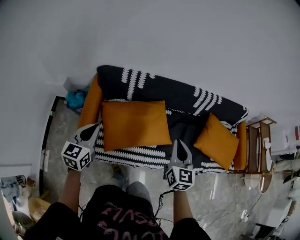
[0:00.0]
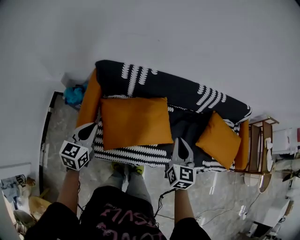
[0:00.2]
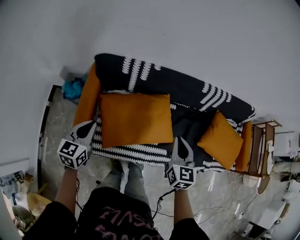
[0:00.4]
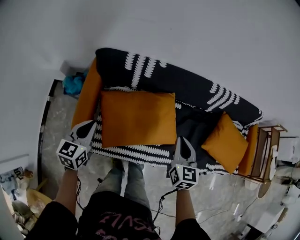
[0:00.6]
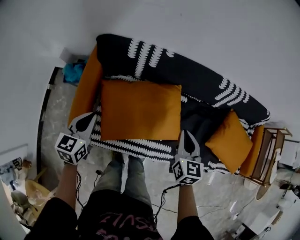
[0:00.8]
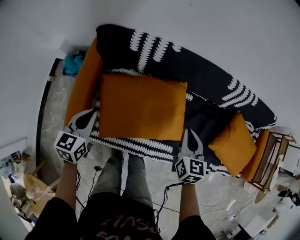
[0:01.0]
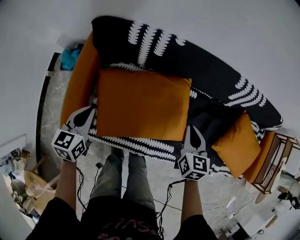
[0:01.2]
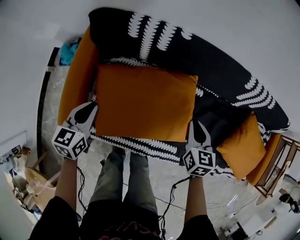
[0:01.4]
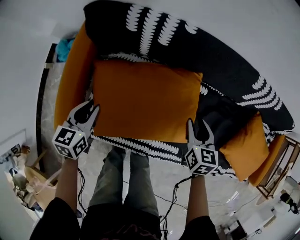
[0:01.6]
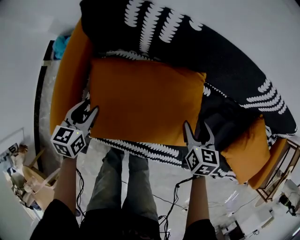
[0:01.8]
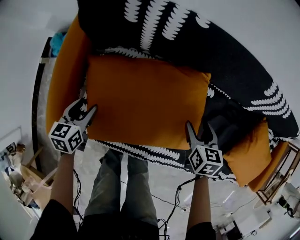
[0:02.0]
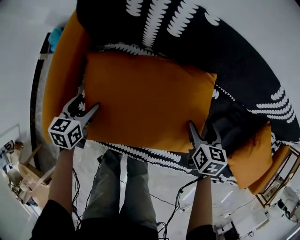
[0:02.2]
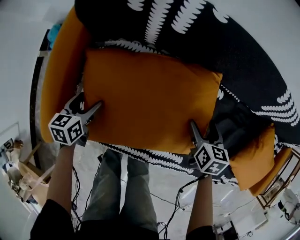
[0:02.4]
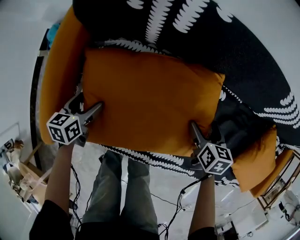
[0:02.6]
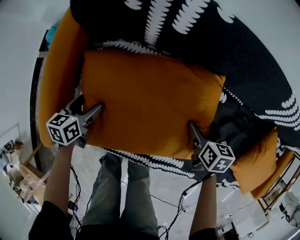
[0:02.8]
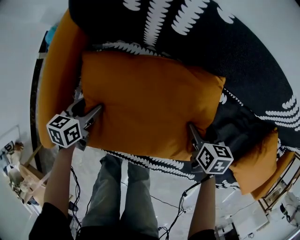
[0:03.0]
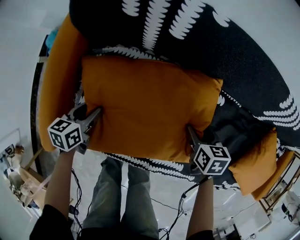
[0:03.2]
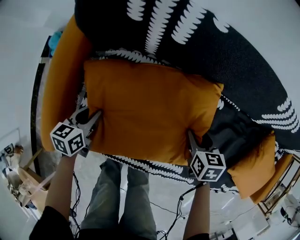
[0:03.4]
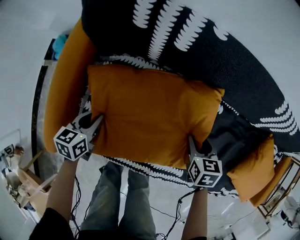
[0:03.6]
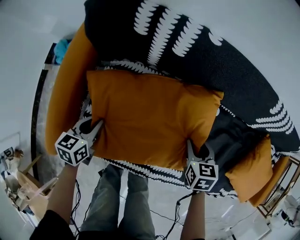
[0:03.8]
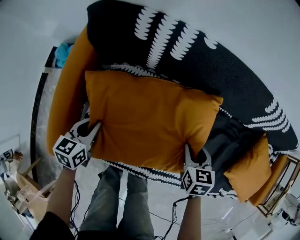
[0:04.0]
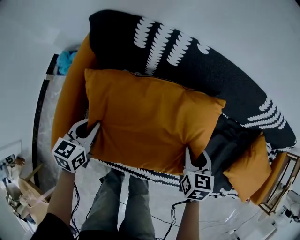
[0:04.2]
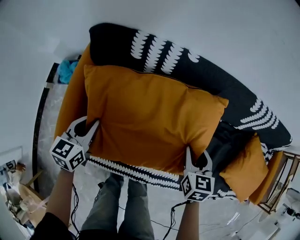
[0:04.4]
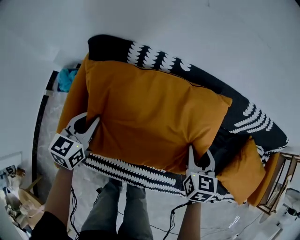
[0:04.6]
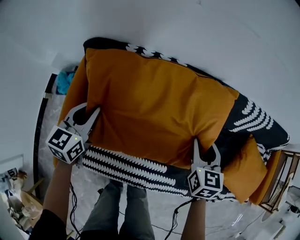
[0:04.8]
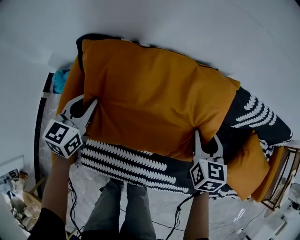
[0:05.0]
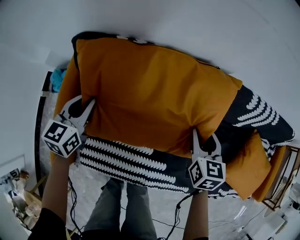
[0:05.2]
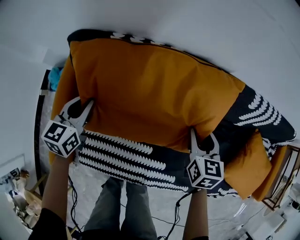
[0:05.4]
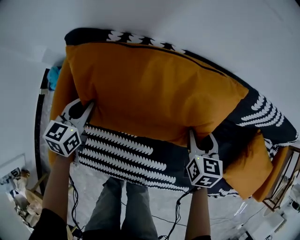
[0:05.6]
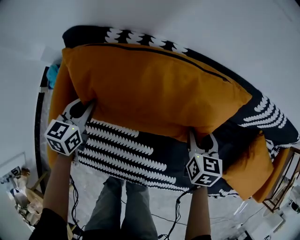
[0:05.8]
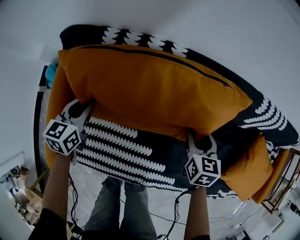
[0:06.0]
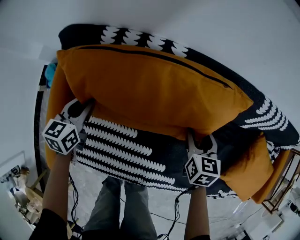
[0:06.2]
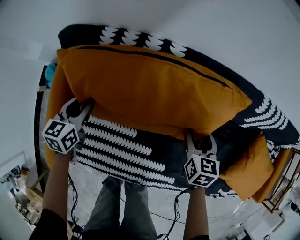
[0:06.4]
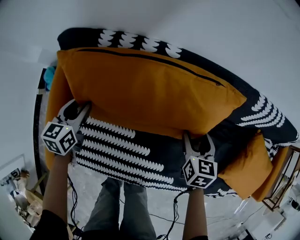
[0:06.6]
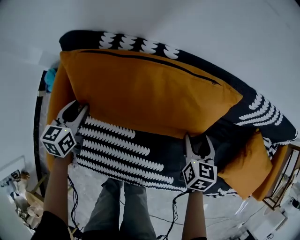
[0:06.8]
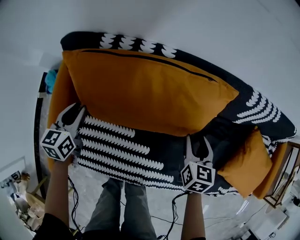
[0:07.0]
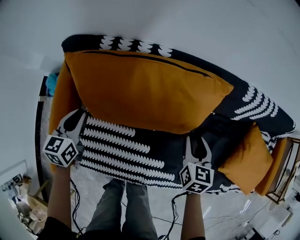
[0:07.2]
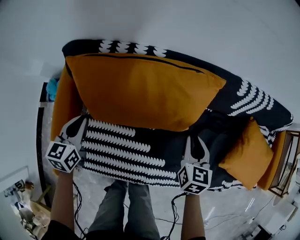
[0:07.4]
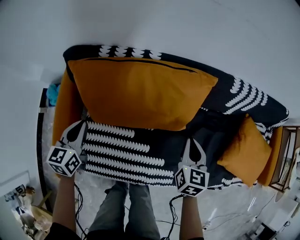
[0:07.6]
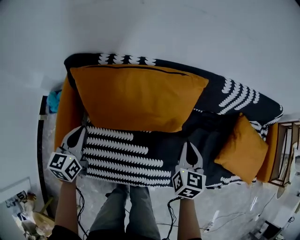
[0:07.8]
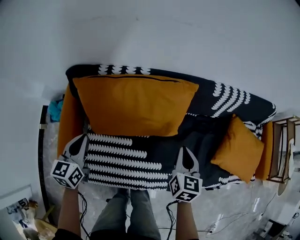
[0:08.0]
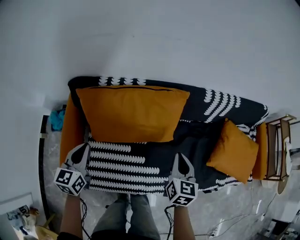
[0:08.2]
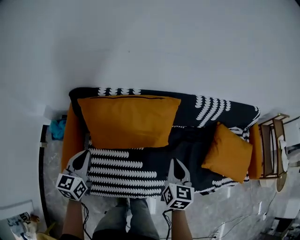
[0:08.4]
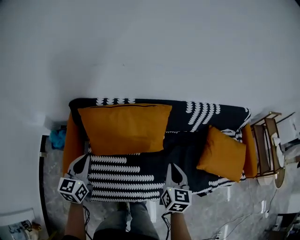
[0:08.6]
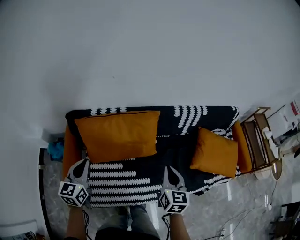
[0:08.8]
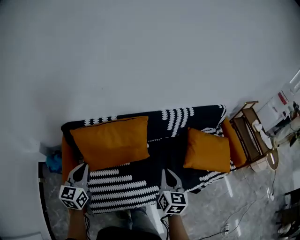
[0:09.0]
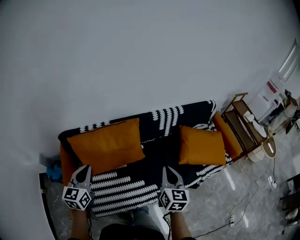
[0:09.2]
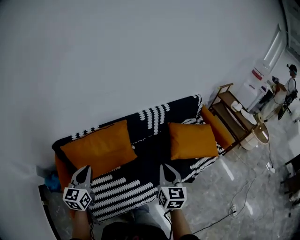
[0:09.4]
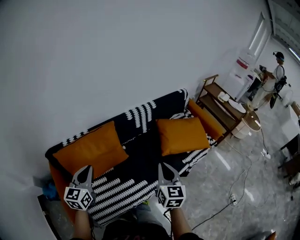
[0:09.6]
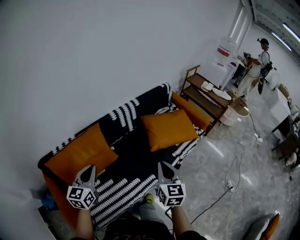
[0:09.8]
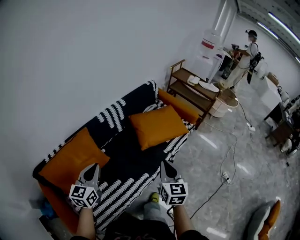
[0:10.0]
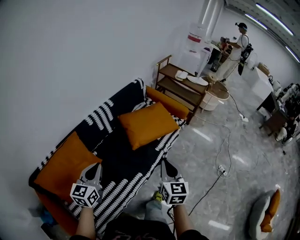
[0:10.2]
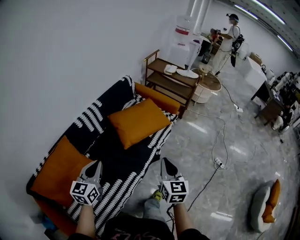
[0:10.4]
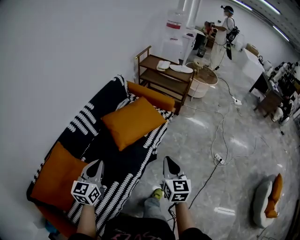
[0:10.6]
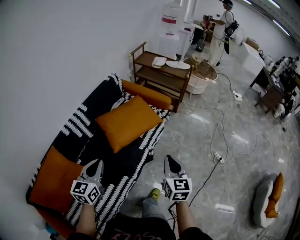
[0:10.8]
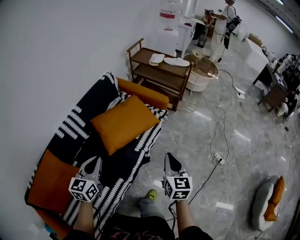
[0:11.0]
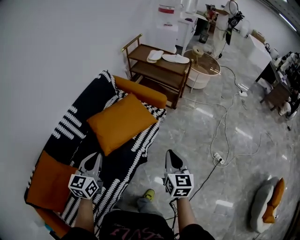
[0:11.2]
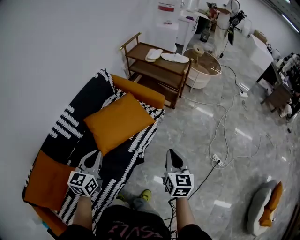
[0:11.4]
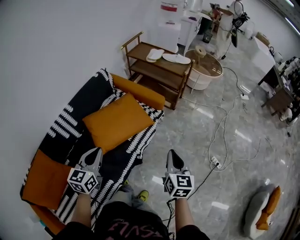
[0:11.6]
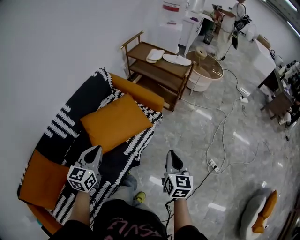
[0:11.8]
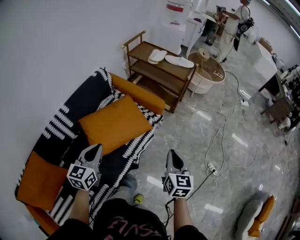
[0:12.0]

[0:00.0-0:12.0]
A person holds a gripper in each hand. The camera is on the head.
0:00.0 to 0:01.6: Both grippers move downward and forward, roughly 35 cm. The right gripper changes its angle by about 30 degrees; the left gripper rotates approximately 20 degrees.
0:01.6 to 0:03.0: The two grippers go approximately 20 cm downward. The right gripper swivels approximately 20 degrees, and opens; the left gripper opens.
0:03.0 to 0:04.4: The two grippers go about 20 cm upward. The right gripper changes its angle by some 30 degrees. The left gripper rotates some 20 degrees, and closes up.
0:04.4 to 0:06.0: Both grippers move forward and downward, about 15 cm.
0:06.0 to 0:07.6: The two grippers go approximately 10 cm upward and backward. The right gripper closes.
0:07.6 to 0:09.0: The left gripper heads upward, covering approximately 25 cm, and swivels approximately 20 degrees. The right gripper heads upward and backward, covering approximately 30 cm, and turns by about 20 degrees.
0:09.0 to 0:10.4: The left gripper moves approximately 40 cm, and rotates roughly 50 degrees; the right gripper ends up roughly 35 cm from where it was, and rotates roughly 40 degrees.
0:10.4 to 0:12.0: Both grippers travel together forward and to the right, roughly 40 cm.

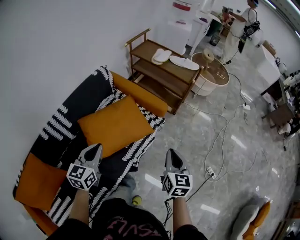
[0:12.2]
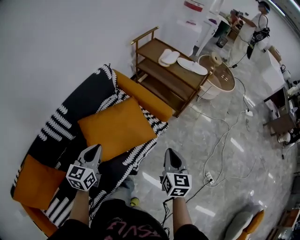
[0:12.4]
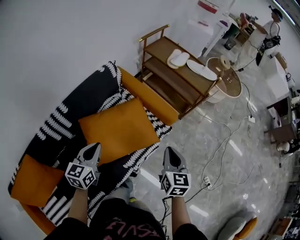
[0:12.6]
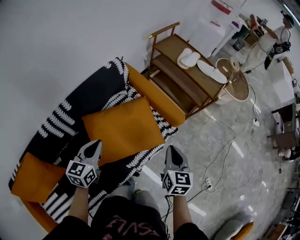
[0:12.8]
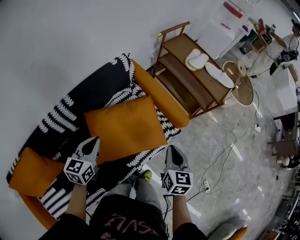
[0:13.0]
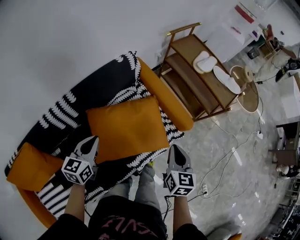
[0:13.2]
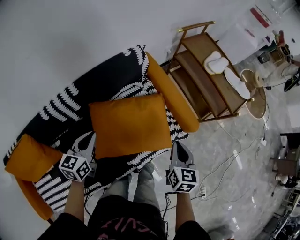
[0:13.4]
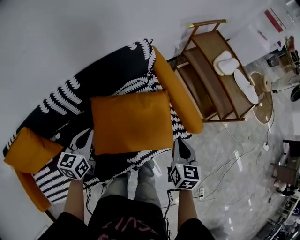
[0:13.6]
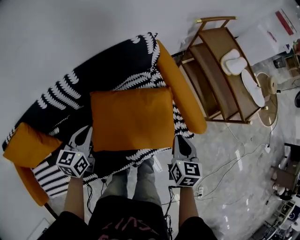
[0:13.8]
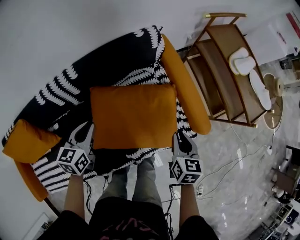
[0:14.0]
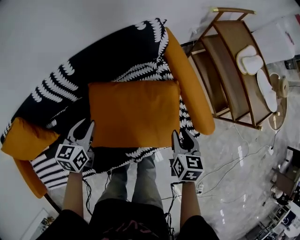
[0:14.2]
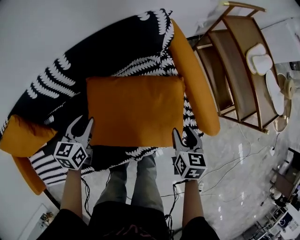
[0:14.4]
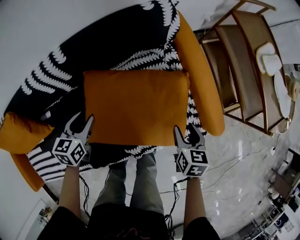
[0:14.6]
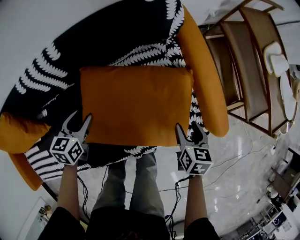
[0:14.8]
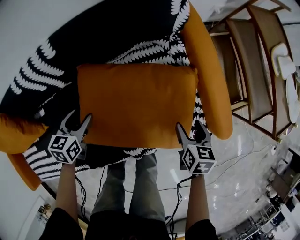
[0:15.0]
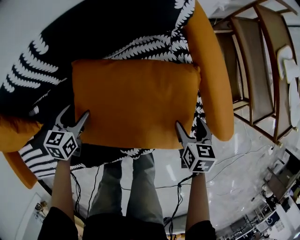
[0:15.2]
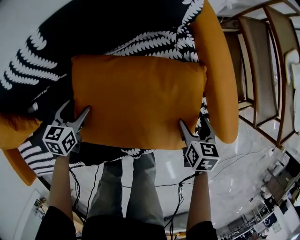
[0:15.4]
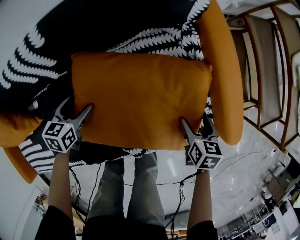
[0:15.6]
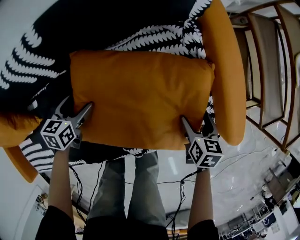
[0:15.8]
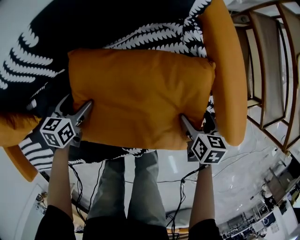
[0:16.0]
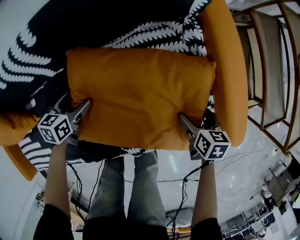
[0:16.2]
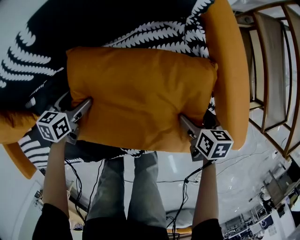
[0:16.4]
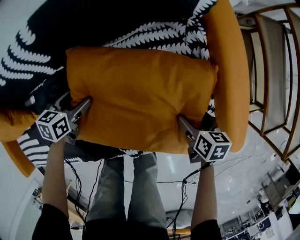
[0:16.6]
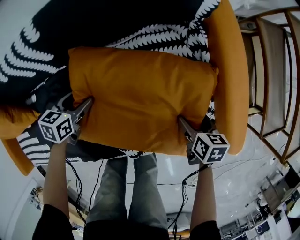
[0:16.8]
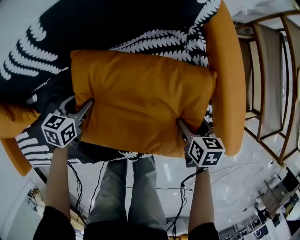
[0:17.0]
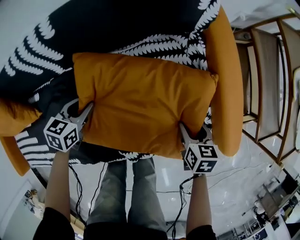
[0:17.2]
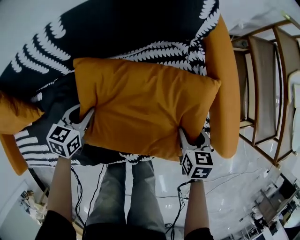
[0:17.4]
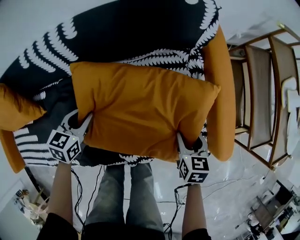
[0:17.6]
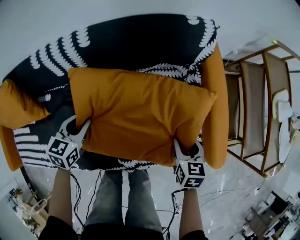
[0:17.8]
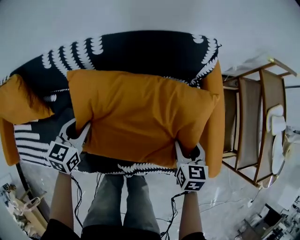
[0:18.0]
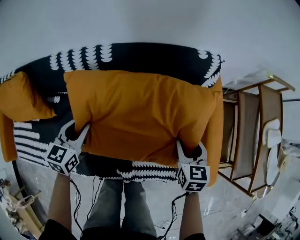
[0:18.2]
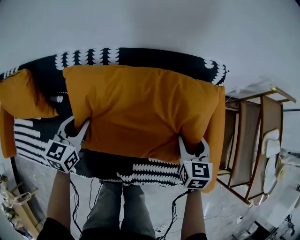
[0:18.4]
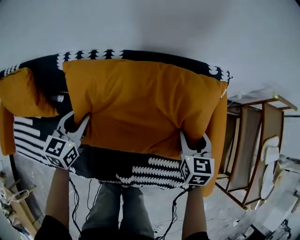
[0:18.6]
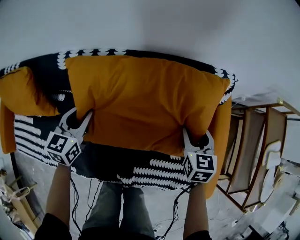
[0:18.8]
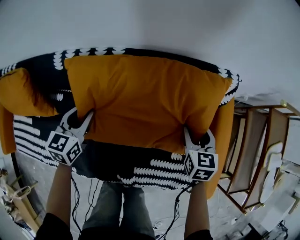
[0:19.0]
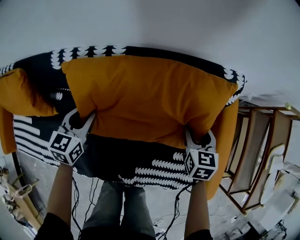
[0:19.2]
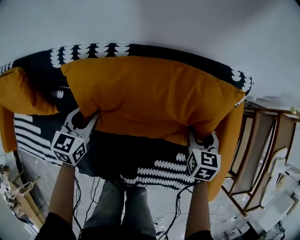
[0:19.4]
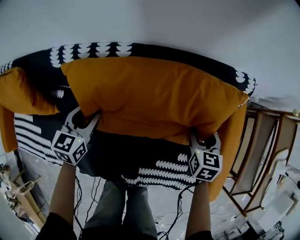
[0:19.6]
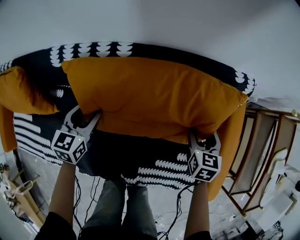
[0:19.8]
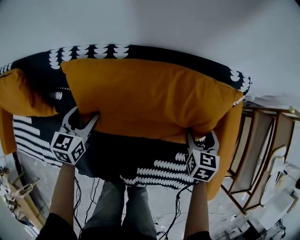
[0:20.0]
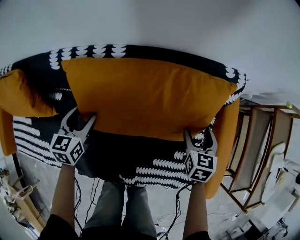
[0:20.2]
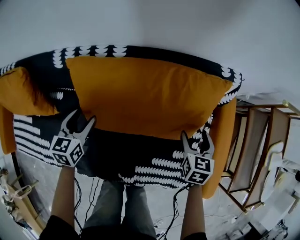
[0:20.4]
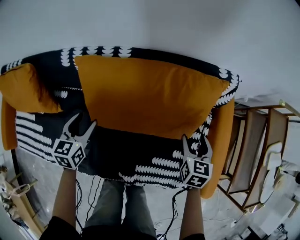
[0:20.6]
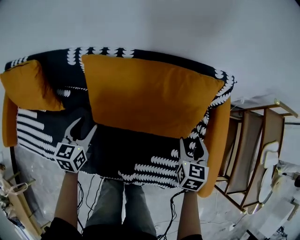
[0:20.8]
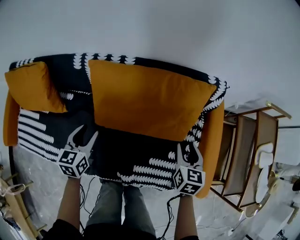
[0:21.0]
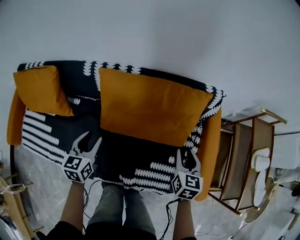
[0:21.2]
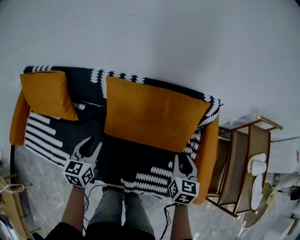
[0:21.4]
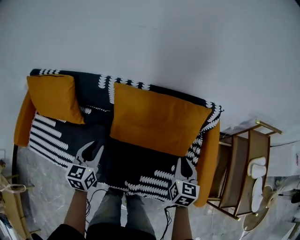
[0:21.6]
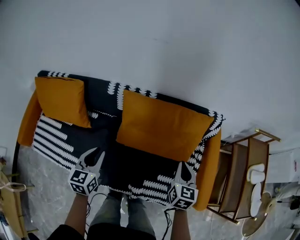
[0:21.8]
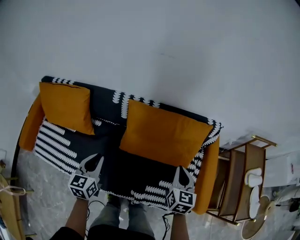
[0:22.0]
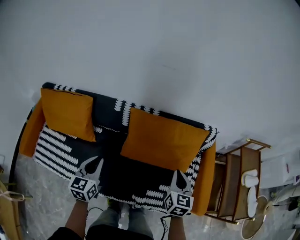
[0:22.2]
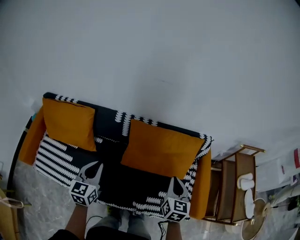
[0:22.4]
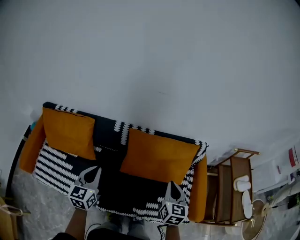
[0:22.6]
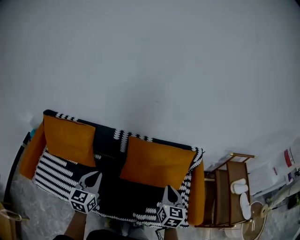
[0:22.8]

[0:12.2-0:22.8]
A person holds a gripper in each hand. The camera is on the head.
0:12.2 to 0:13.8: The right gripper ends up about 35 cm from where it was, and rotates approximately 30 degrees. The left gripper ends up some 25 cm from where it was, and changes its angle by roughly 40 degrees.
0:13.8 to 0:15.2: Both grippers move downward, approximately 25 cm. The left gripper opens, while the right gripper turns by some 20 degrees, and opens.
0:15.2 to 0:16.8: The two grippers go about 10 cm downward.
0:16.8 to 0:18.2: The left gripper heads upward, covering approximately 20 cm, turns by about 30 degrees, and closes its fingers. The right gripper is displaced upward, forward and to the left by roughly 25 cm, and turns by roughly 40 degrees.
0:18.2 to 0:19.8: The right gripper travels forward and downward by roughly 15 cm. The left gripper goes roughly 15 cm forward, downward and to the left.
0:19.8 to 0:21.2: The right gripper heads upward and backward, covering some 20 cm, while the left gripper heads backward and upward, covering some 20 cm.
0:21.2 to 0:22.8: Both grippers move upward, to the left and backward, about 30 cm. The left gripper closes.

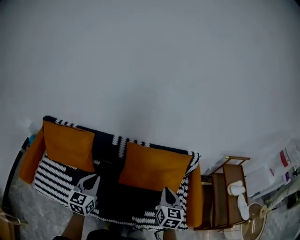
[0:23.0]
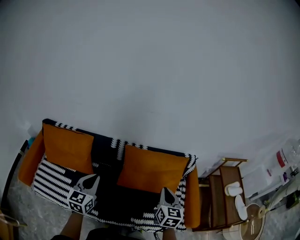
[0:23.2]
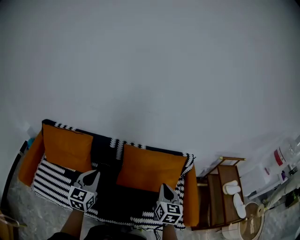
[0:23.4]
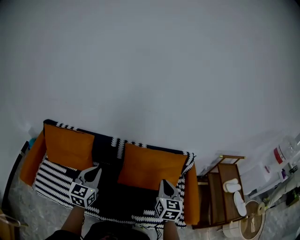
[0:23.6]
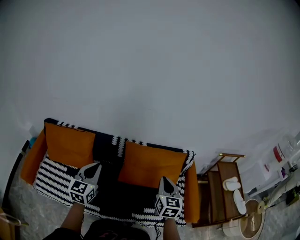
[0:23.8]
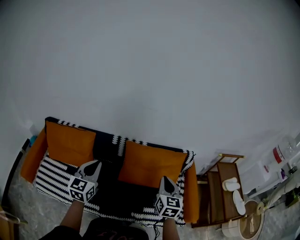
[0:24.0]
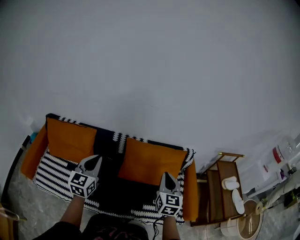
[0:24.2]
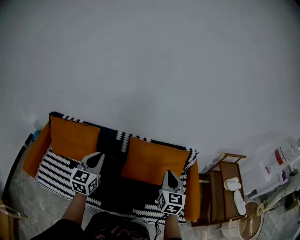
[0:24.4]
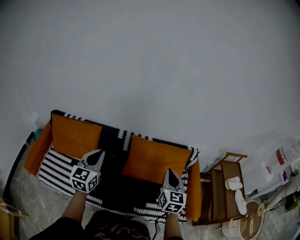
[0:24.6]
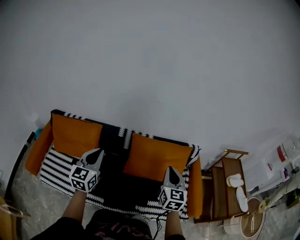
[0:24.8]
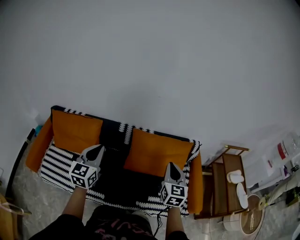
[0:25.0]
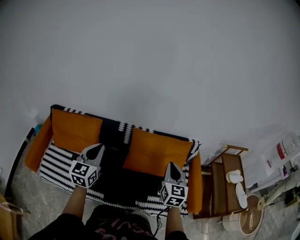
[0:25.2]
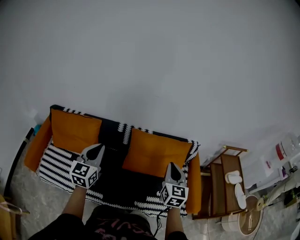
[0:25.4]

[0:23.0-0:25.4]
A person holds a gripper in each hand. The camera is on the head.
0:23.0 to 0:24.2: Both grippers move upward, roughly 10 cm.
0:24.2 to 0:25.4: There are only small adjustments of the grippers.
